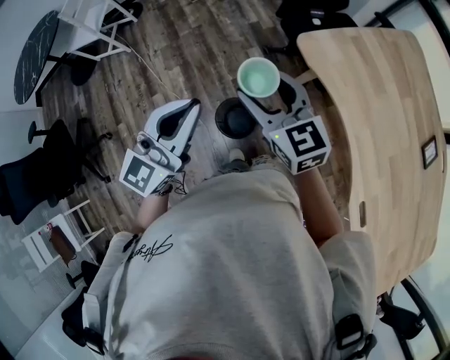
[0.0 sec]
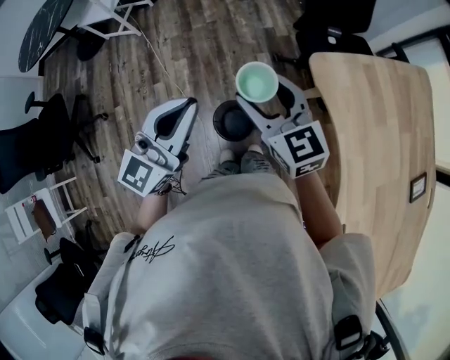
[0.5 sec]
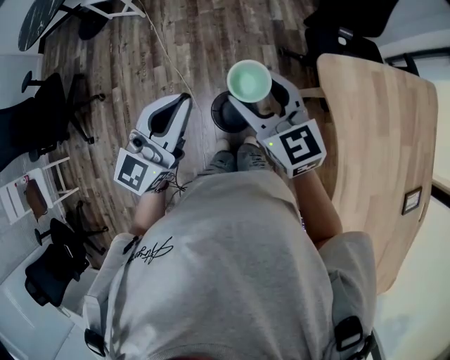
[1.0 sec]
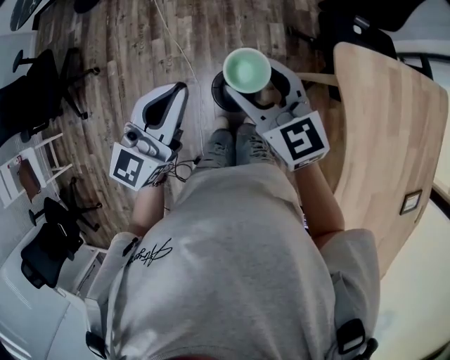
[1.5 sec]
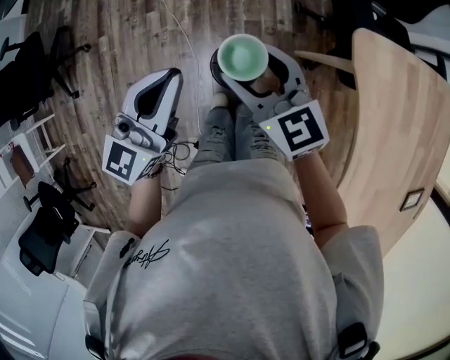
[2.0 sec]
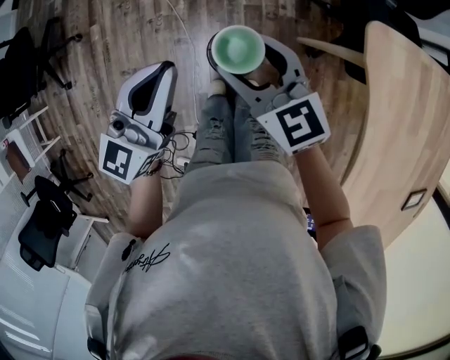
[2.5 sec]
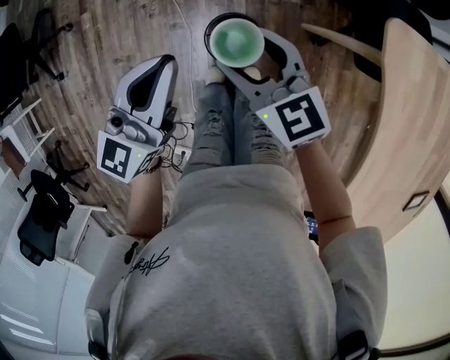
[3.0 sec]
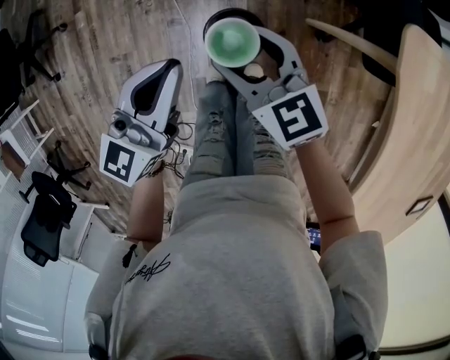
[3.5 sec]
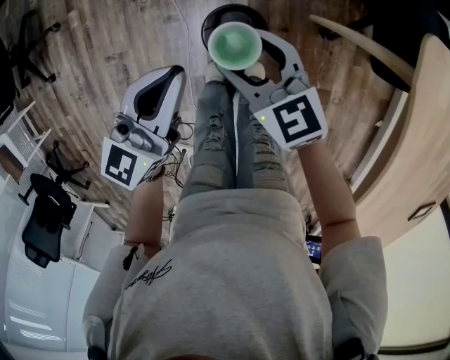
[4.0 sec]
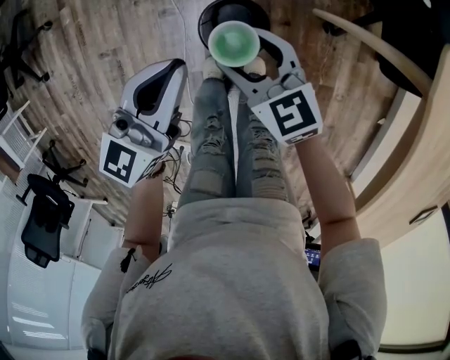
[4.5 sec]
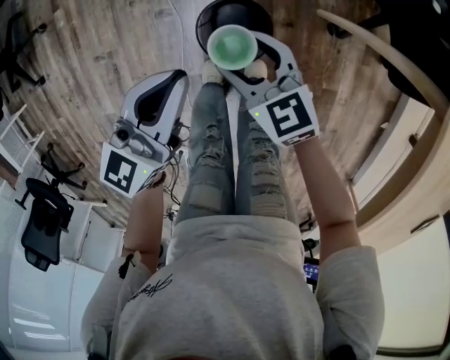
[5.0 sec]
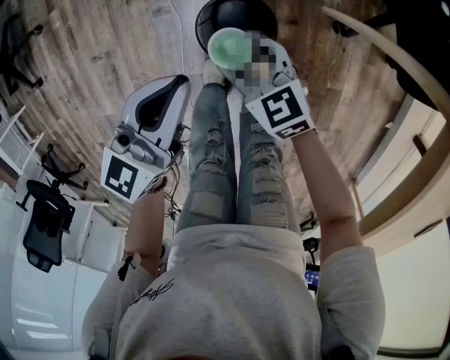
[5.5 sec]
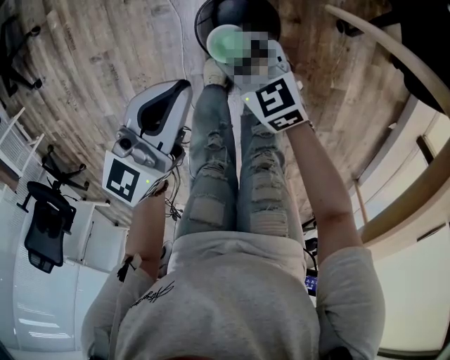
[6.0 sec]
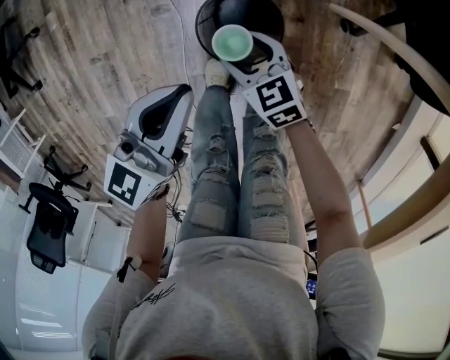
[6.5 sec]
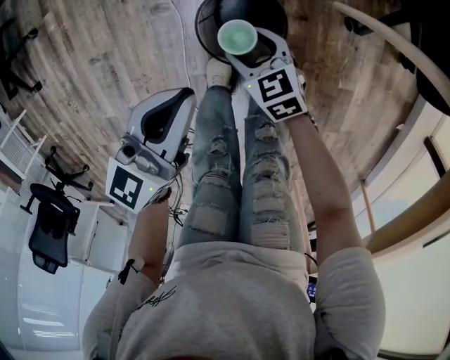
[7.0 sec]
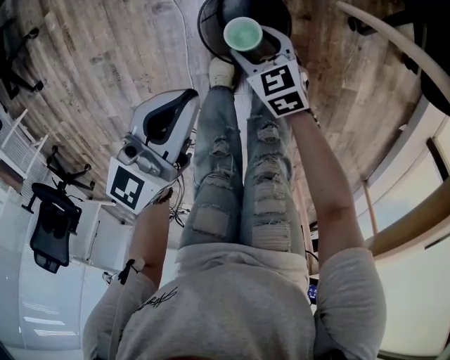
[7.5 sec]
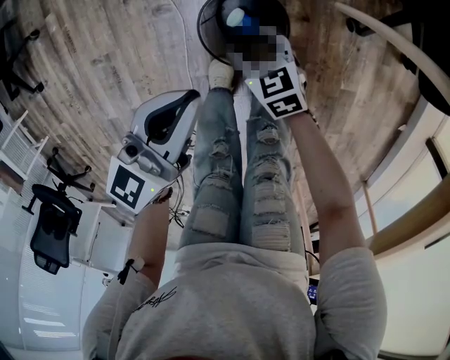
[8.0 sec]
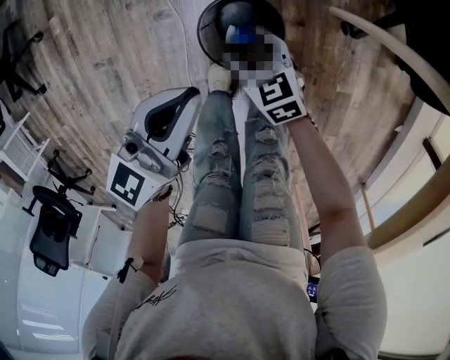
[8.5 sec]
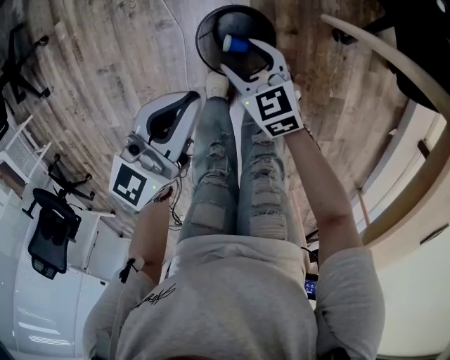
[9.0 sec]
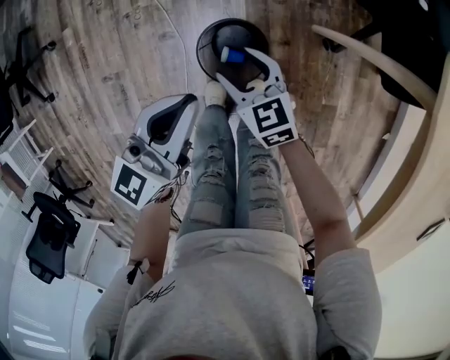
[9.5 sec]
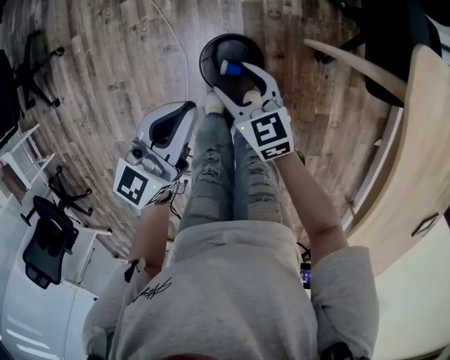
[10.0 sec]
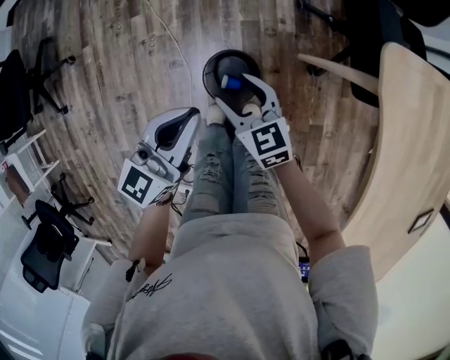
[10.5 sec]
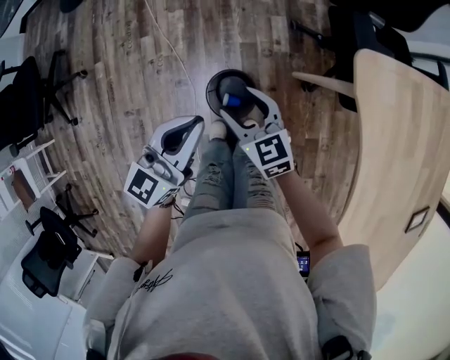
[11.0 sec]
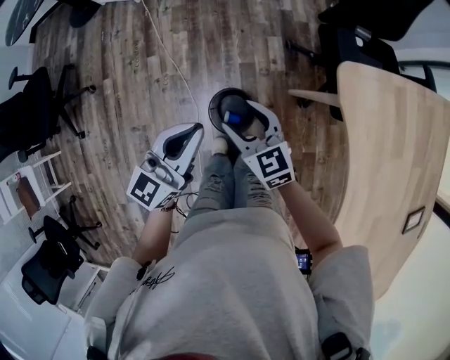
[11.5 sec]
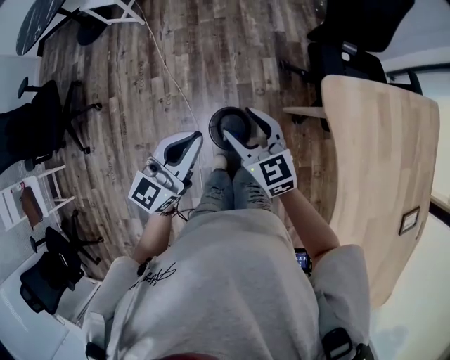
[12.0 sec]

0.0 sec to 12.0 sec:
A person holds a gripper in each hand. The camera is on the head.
0.0 sec to 2.0 sec: The grippers both shift downward by roughly 10 cm. The right gripper swivels some 30 degrees; the left gripper swivels roughly 30 degrees.
2.0 sec to 4.0 sec: Both grippers move downward, some 20 cm.
4.0 sec to 6.0 sec: The right gripper moves downward, approximately 20 cm. Meanwhile the left gripper is displaced downward by about 10 cm.
6.0 sec to 8.0 sec: The right gripper goes roughly 10 cm downward.
8.0 sec to 10.0 sec: The left gripper heads upward, covering about 10 cm. The right gripper moves upward, approximately 20 cm.
10.0 sec to 12.0 sec: Both grippers travel together upward, roughly 20 cm.

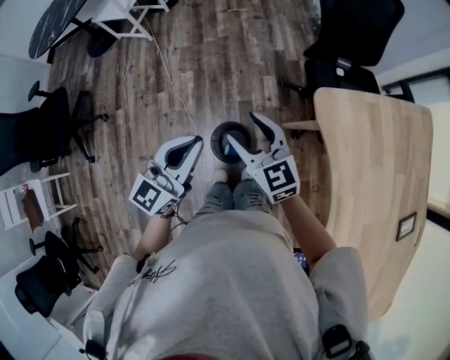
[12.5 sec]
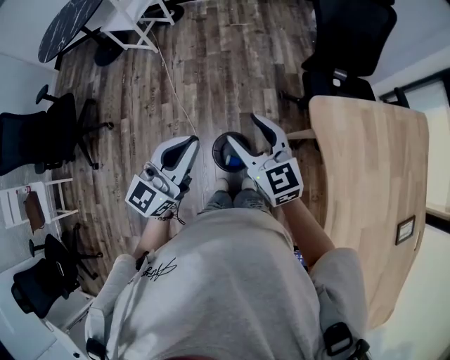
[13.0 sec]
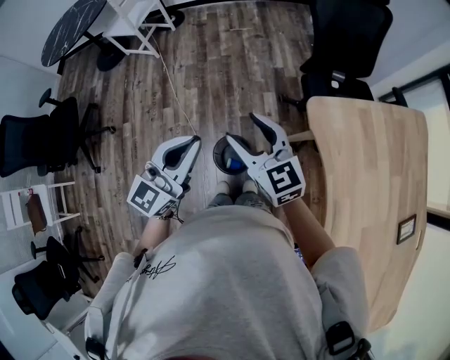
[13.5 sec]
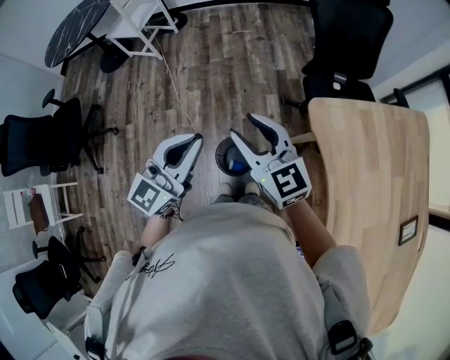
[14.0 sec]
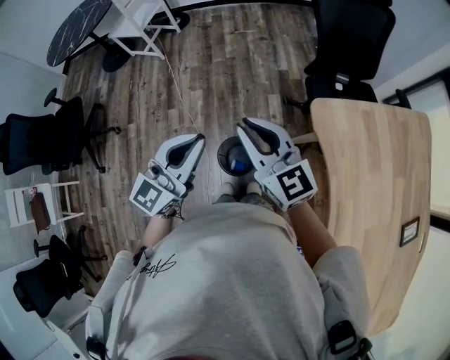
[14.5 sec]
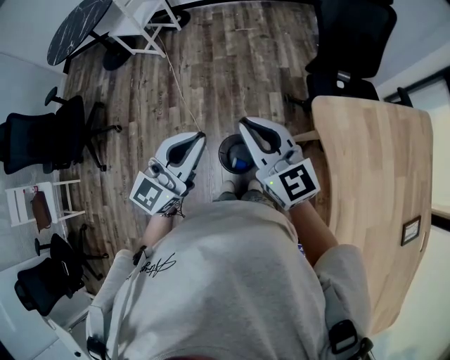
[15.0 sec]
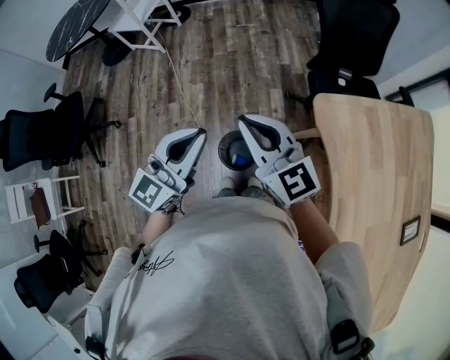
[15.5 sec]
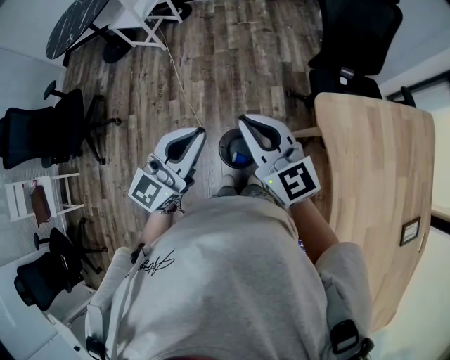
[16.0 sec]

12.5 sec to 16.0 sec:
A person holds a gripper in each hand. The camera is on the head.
12.5 sec to 14.5 sec: The right gripper goes roughly 10 cm upward, and closes; the left gripper travels upward by approximately 5 cm.
14.5 sec to 16.0 sec: Both grippers stay about where they are.

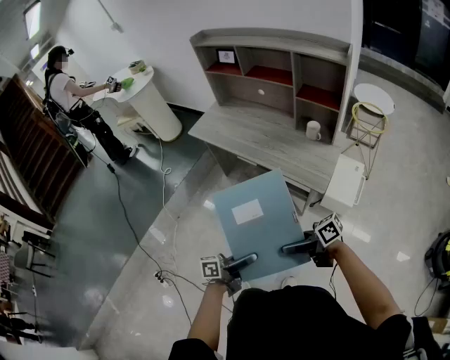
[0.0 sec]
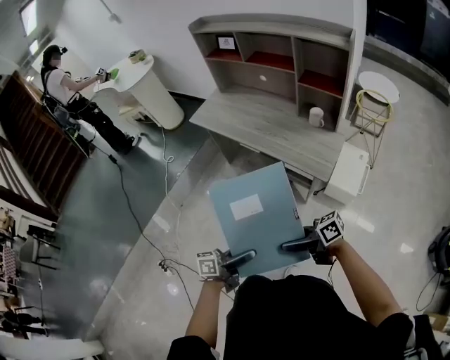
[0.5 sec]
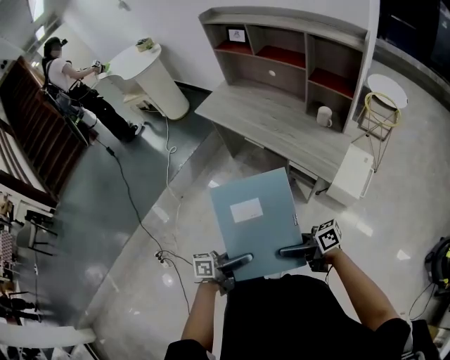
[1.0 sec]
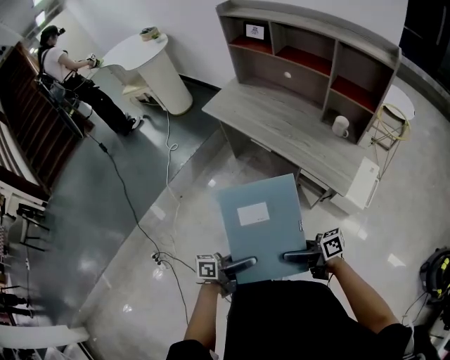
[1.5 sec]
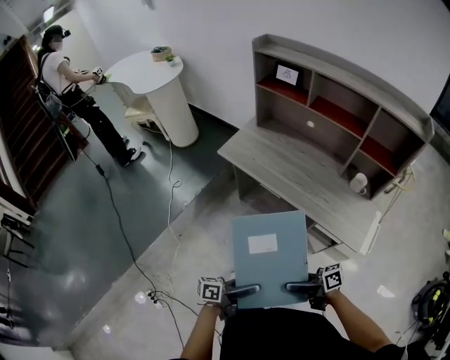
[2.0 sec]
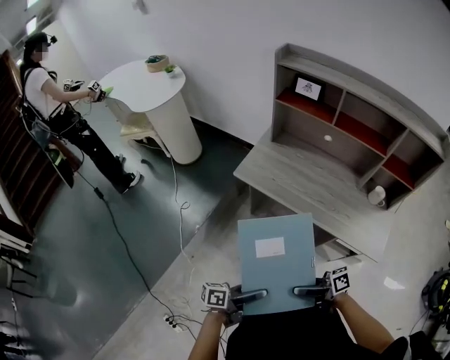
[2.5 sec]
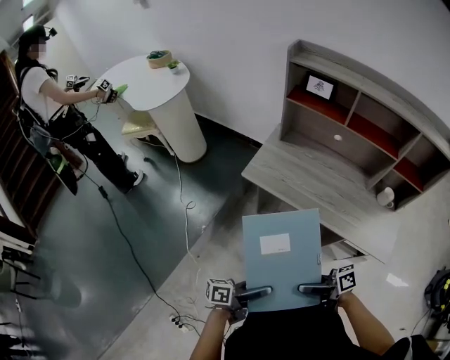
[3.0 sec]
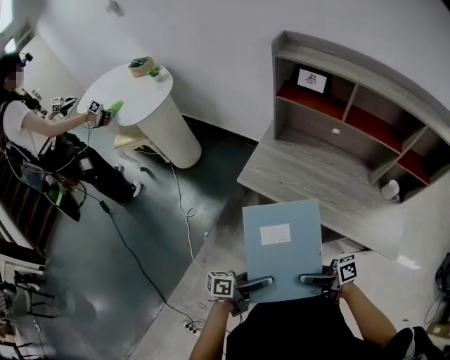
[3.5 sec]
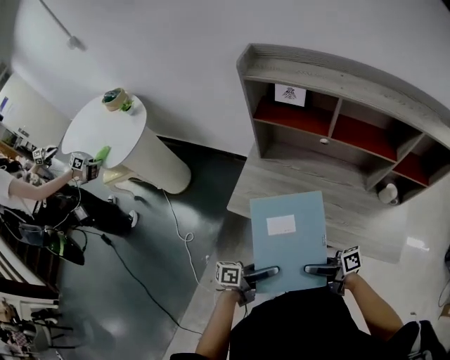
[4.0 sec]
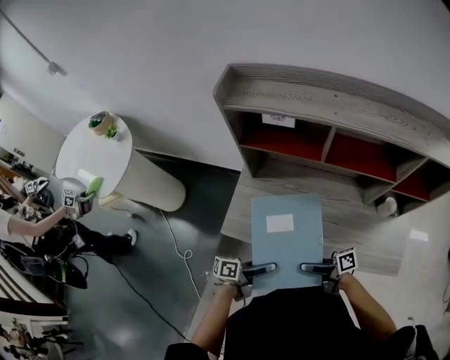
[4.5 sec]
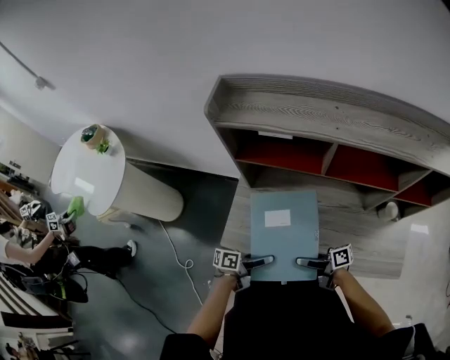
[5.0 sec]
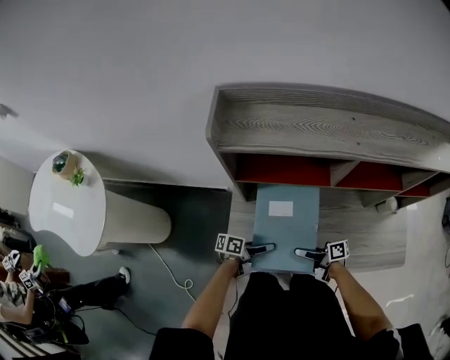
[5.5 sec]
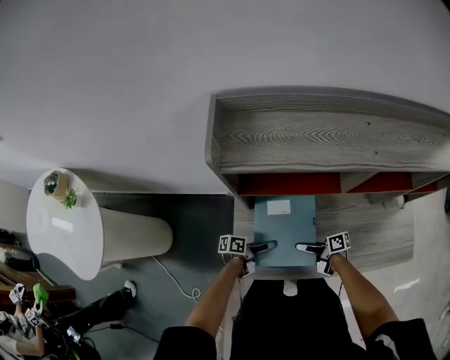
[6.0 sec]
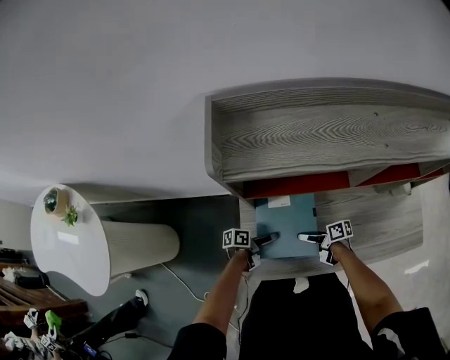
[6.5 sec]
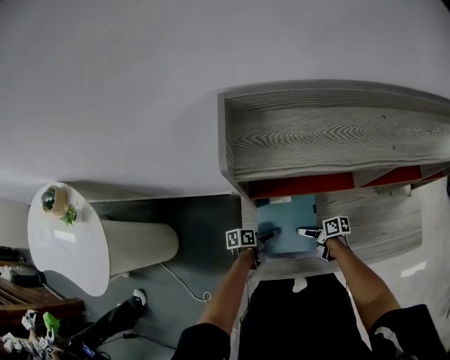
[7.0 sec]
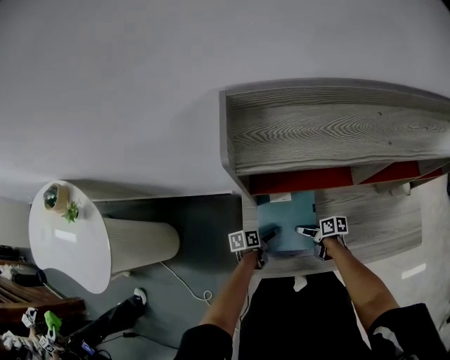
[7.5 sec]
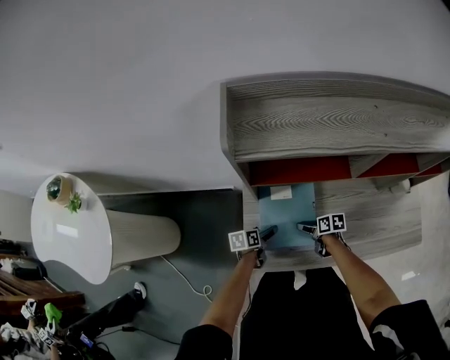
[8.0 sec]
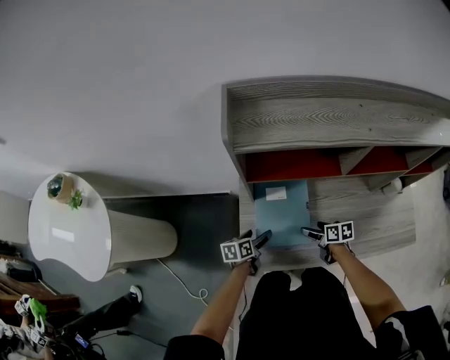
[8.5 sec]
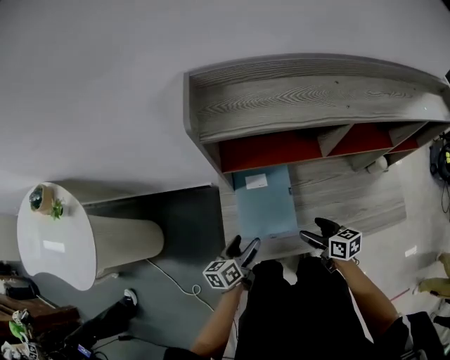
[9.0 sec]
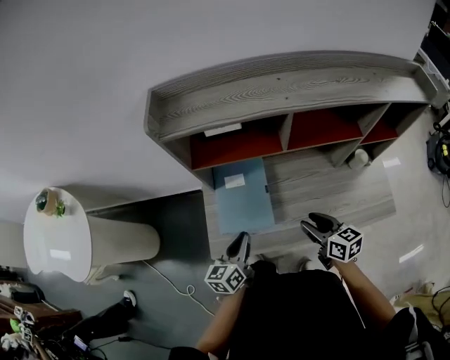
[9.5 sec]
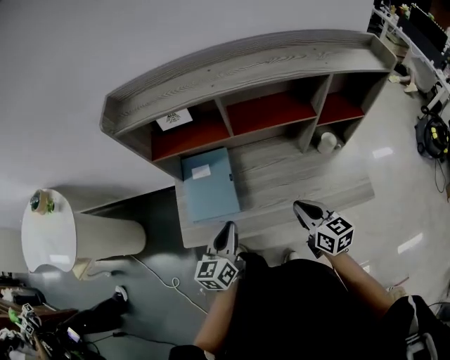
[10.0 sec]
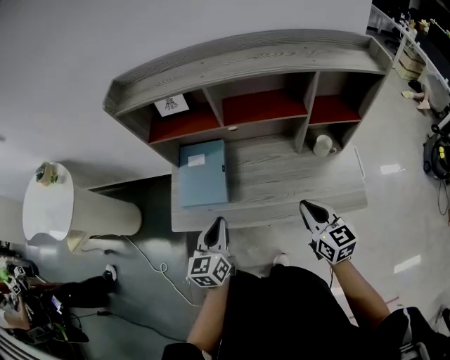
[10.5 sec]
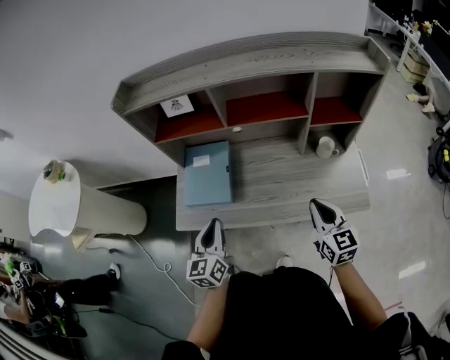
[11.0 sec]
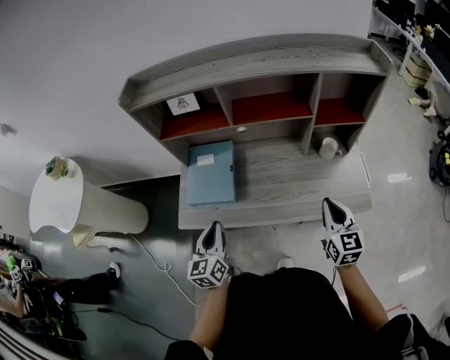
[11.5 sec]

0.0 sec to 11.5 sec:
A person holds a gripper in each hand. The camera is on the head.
0.0 sec to 2.0 sec: The right gripper shifts by some 25 cm. Meanwhile the left gripper ends up approximately 25 cm from where it was.
2.0 sec to 4.0 sec: The right gripper shifts by approximately 40 cm. Meanwhile the left gripper ends up approximately 40 cm from where it was.
4.0 sec to 6.0 sec: The left gripper changes place by approximately 40 cm, and changes its angle by some 30 degrees. The right gripper shifts by about 35 cm, and rotates about 30 degrees.
6.0 sec to 7.5 sec: The left gripper ends up roughly 10 cm from where it was, and rotates about 20 degrees. The right gripper goes approximately 5 cm downward, and turns by some 30 degrees.
7.5 sec to 9.5 sec: The left gripper goes approximately 25 cm upward and backward, swivels about 40 degrees, and closes its fingers. The right gripper is displaced upward, to the right and backward by approximately 30 cm, rotates approximately 40 degrees, and closes its fingers.
9.5 sec to 11.5 sec: The right gripper is displaced to the right and backward by about 25 cm, swivels roughly 30 degrees, and closes its fingers; the left gripper shifts roughly 20 cm backward, to the right and upward, and swivels roughly 20 degrees.
